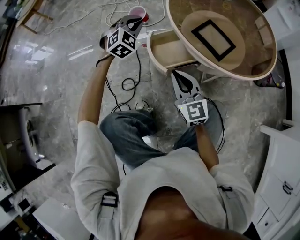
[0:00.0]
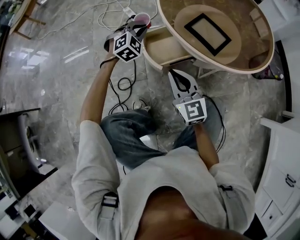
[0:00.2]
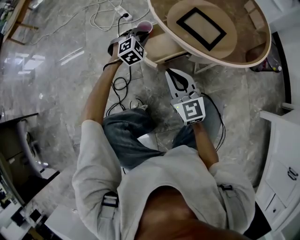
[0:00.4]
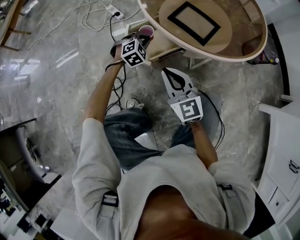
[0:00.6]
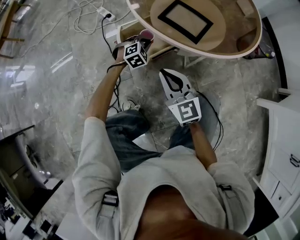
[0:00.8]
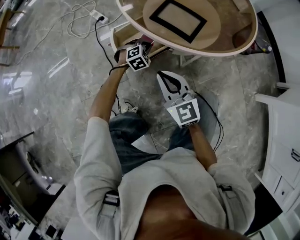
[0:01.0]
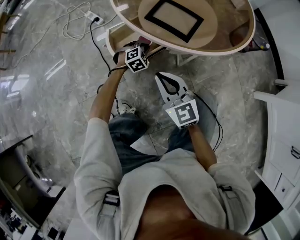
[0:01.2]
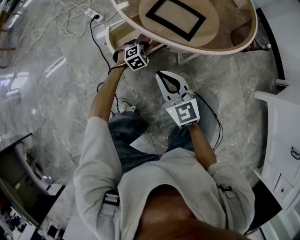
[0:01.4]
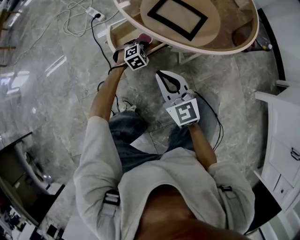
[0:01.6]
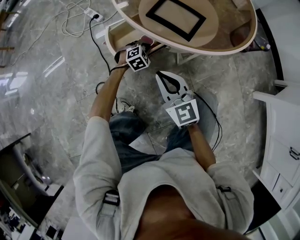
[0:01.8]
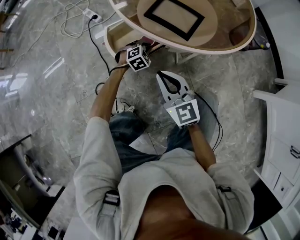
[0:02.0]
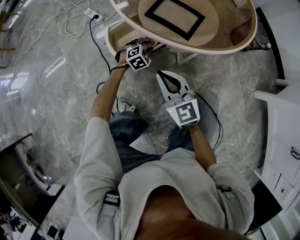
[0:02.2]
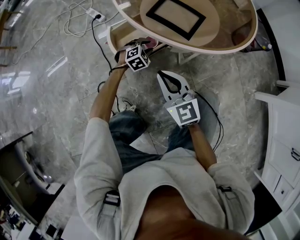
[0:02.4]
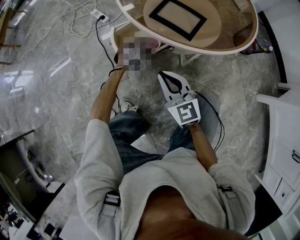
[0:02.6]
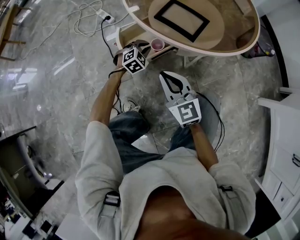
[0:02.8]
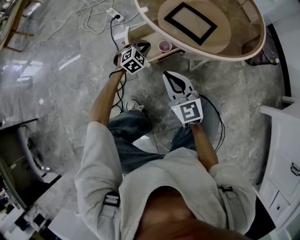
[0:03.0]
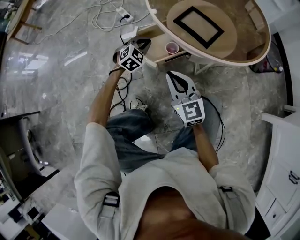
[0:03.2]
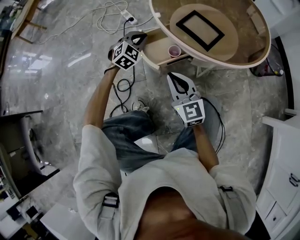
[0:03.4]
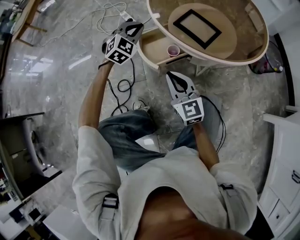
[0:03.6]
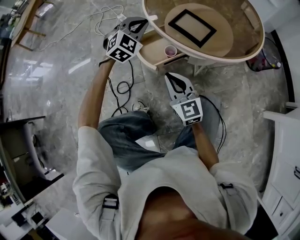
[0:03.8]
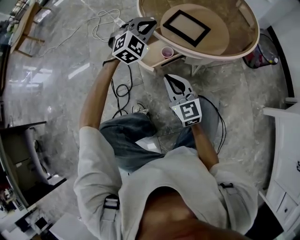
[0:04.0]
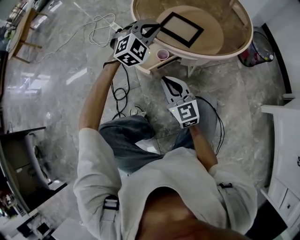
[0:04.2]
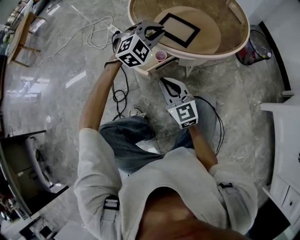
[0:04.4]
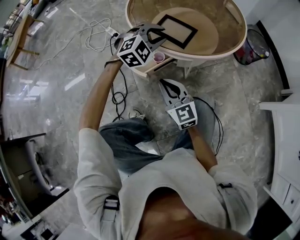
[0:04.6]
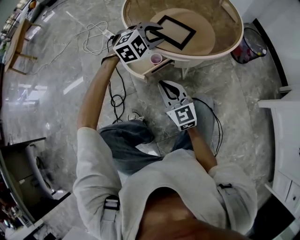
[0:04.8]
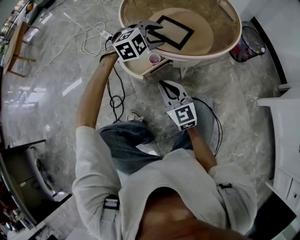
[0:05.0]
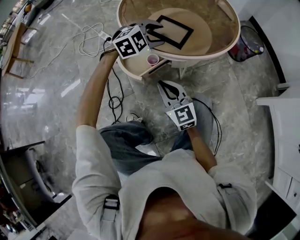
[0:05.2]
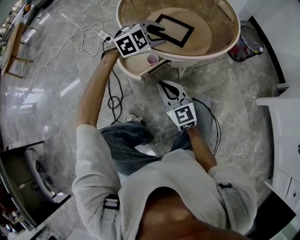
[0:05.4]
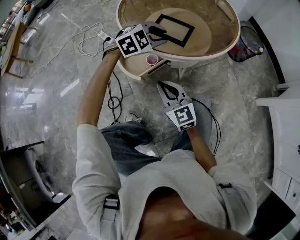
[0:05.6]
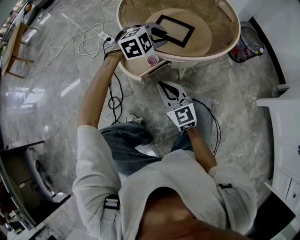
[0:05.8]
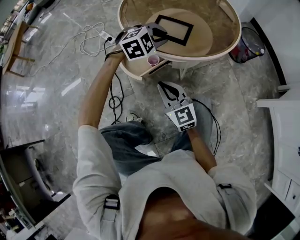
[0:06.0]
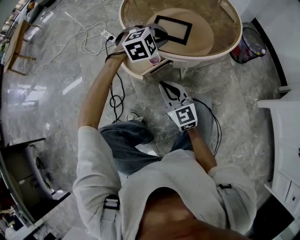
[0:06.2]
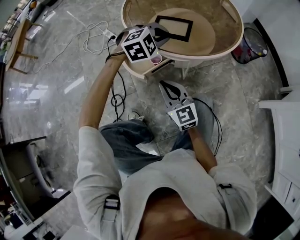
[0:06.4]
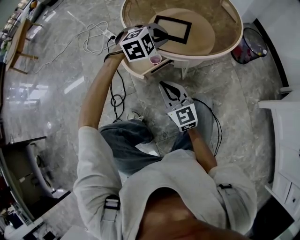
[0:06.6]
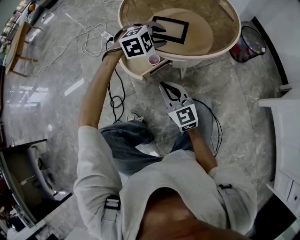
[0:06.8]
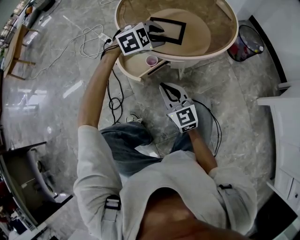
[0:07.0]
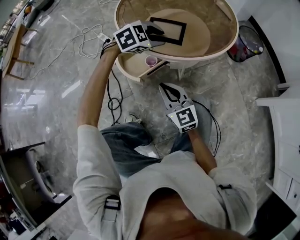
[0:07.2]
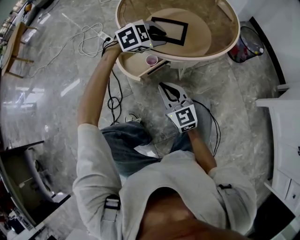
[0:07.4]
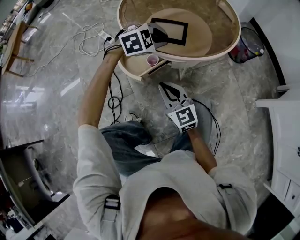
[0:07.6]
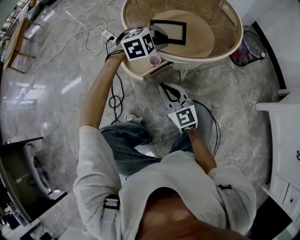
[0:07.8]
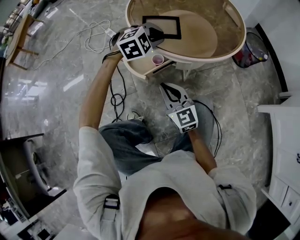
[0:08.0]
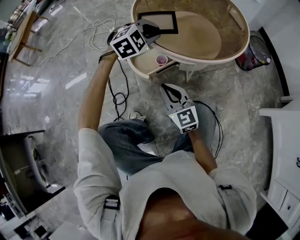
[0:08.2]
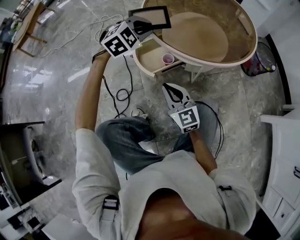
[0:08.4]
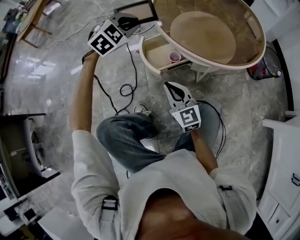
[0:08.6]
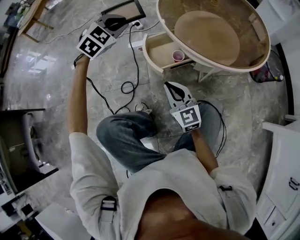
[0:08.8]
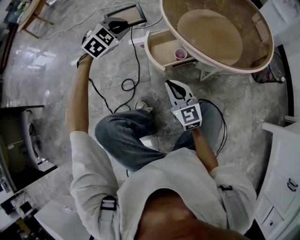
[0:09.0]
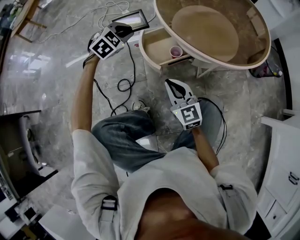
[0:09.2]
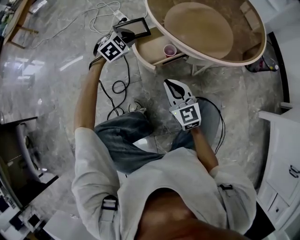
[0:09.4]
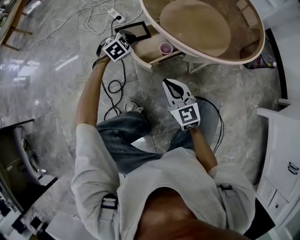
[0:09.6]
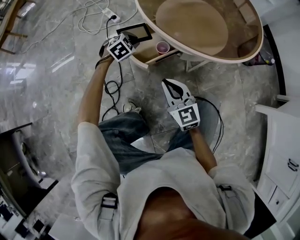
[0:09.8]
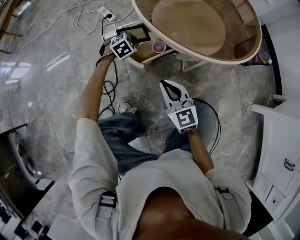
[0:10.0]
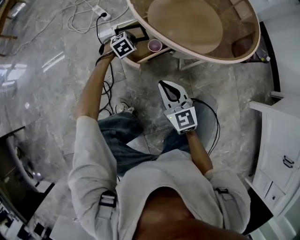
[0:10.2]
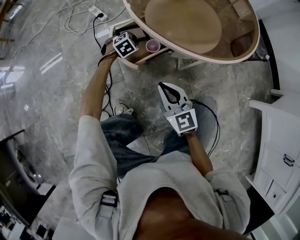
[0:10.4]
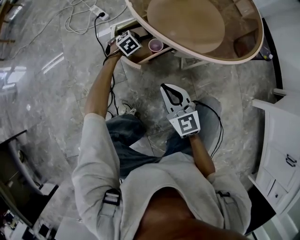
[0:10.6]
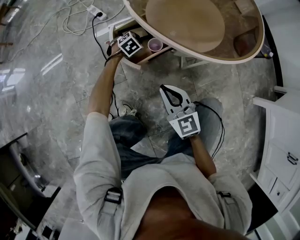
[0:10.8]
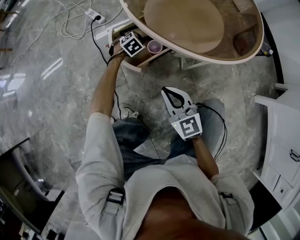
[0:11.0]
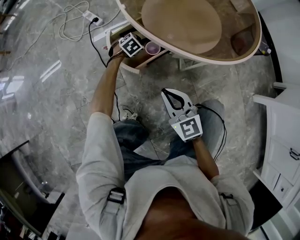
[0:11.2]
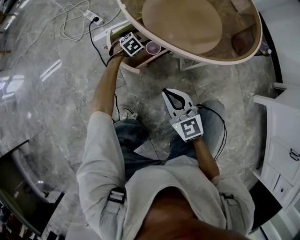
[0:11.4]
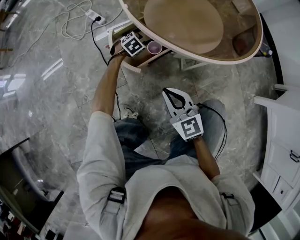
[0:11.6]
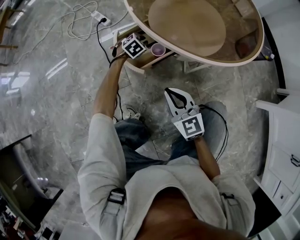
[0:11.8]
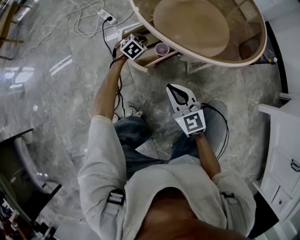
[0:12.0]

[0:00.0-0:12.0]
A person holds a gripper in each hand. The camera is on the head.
0:00.0 to 0:01.6: The right gripper moves to the right, roughly 5 cm, while the left gripper travels downward and to the right by about 35 cm, and swivels about 30 degrees.
0:01.6 to 0:03.0: The left gripper heads upward and to the left, covering some 10 cm, and opens, then closes again.
0:03.0 to 0:04.4: The left gripper goes roughly 25 cm upward and to the right, and rotates about 30 degrees.
0:04.4 to 0:06.0: The left gripper changes place by roughly 5 cm, and opens, then closes again.
0:06.0 to 0:07.6: The left gripper opens and closes again.
0:07.6 to 0:09.0: The right gripper moves roughly 10 cm; the left gripper changes place by some 30 cm, and swivels some 40 degrees.
0:09.0 to 0:10.4: The right gripper is displaced to the right by roughly 5 cm. The left gripper goes about 35 cm downward and to the right, and swivels about 20 degrees.

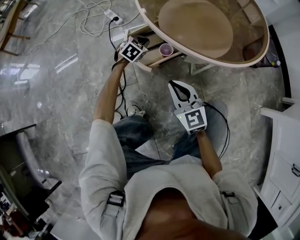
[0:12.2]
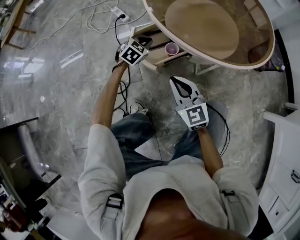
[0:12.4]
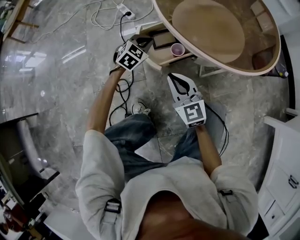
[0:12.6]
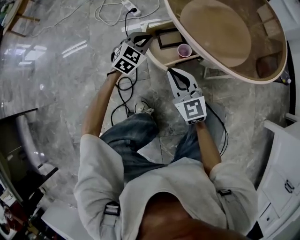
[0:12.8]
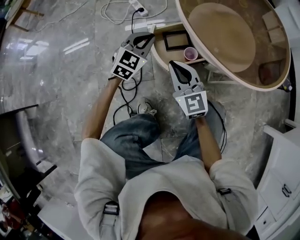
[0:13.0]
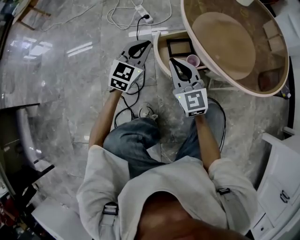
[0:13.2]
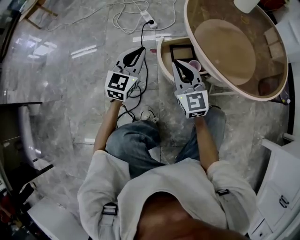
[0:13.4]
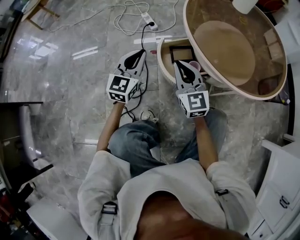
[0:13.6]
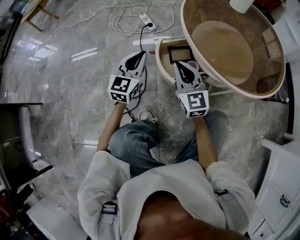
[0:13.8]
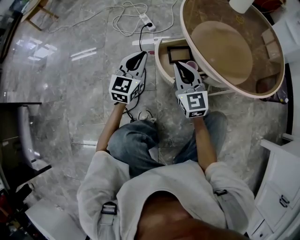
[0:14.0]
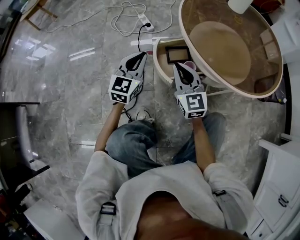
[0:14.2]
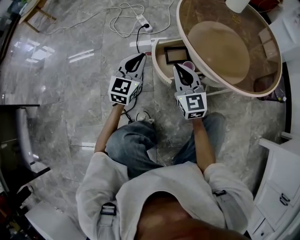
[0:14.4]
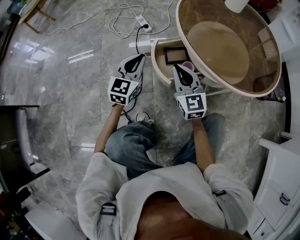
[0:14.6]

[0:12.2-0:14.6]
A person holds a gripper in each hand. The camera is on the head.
0:12.2 to 0:13.4: The left gripper is displaced upward, to the left and backward by about 30 cm, and tips its fingers upward by about 40 degrees; the right gripper shifts approximately 15 cm to the left, forward and upward.
0:13.4 to 0:14.6: The grippers make only small movements.

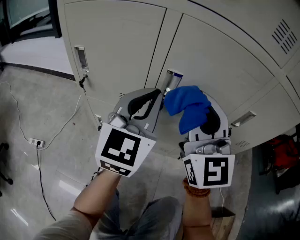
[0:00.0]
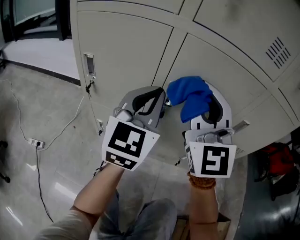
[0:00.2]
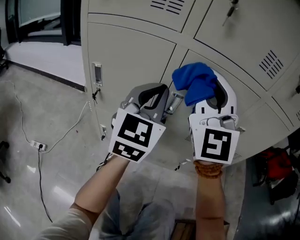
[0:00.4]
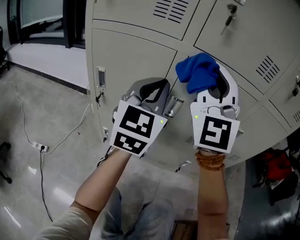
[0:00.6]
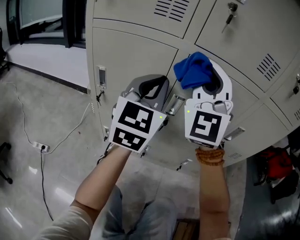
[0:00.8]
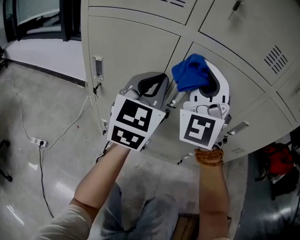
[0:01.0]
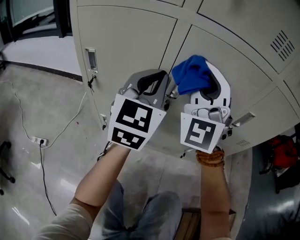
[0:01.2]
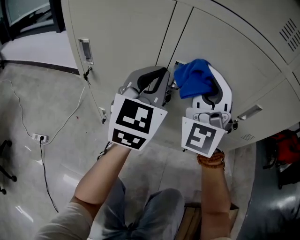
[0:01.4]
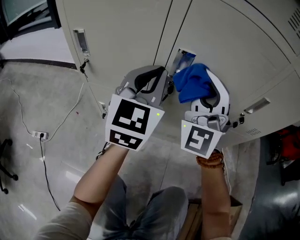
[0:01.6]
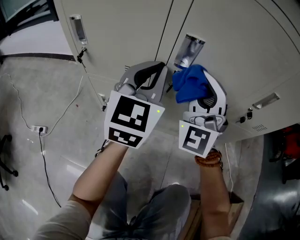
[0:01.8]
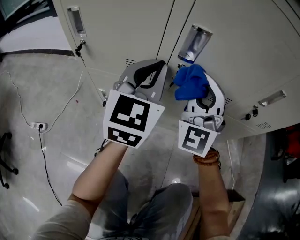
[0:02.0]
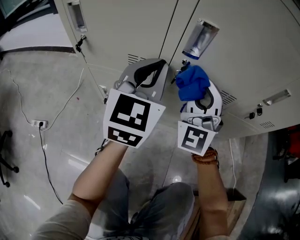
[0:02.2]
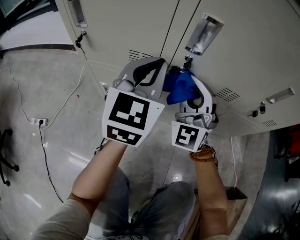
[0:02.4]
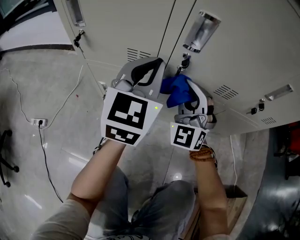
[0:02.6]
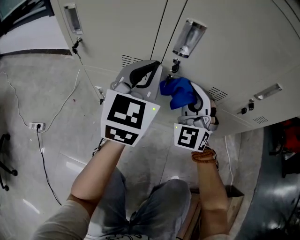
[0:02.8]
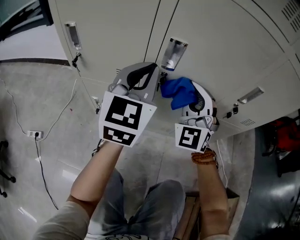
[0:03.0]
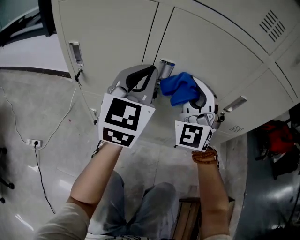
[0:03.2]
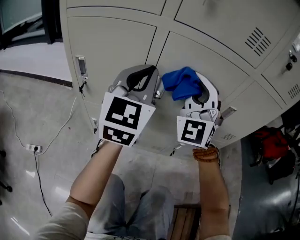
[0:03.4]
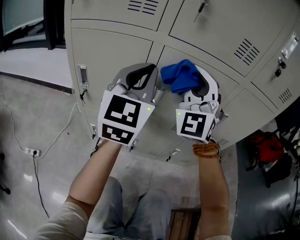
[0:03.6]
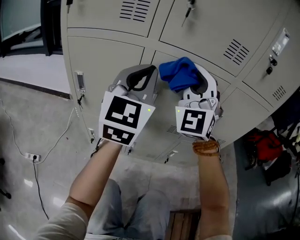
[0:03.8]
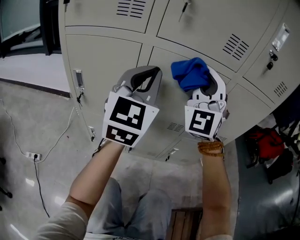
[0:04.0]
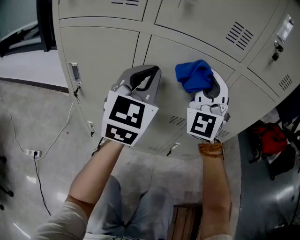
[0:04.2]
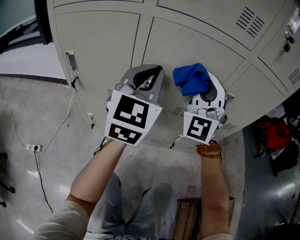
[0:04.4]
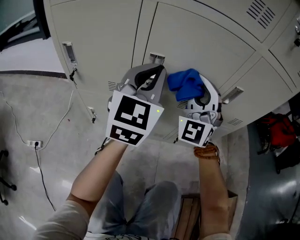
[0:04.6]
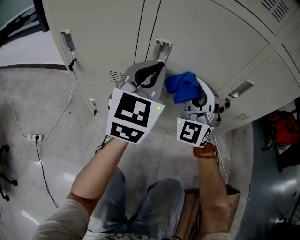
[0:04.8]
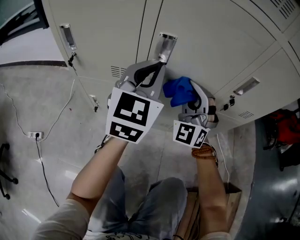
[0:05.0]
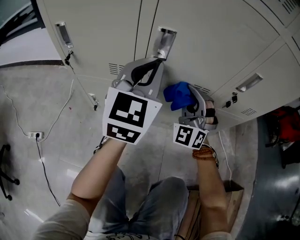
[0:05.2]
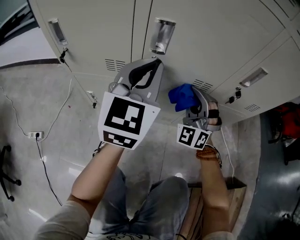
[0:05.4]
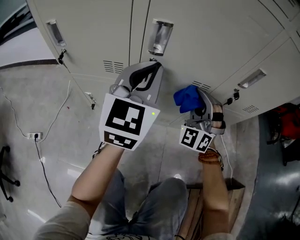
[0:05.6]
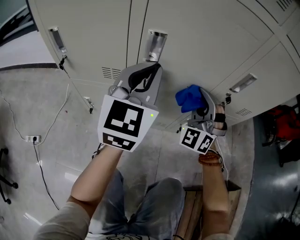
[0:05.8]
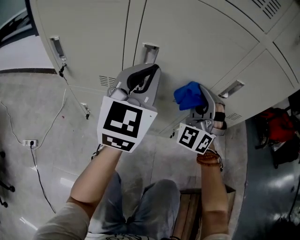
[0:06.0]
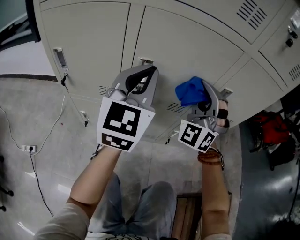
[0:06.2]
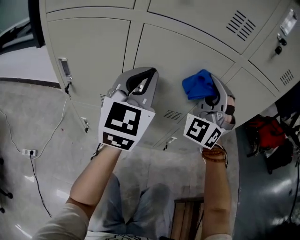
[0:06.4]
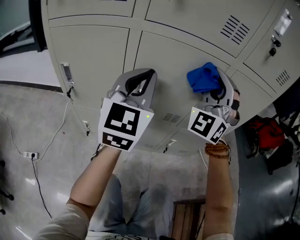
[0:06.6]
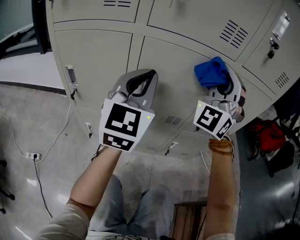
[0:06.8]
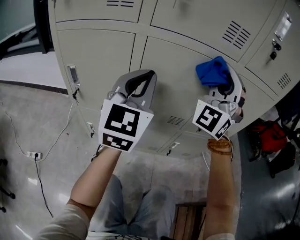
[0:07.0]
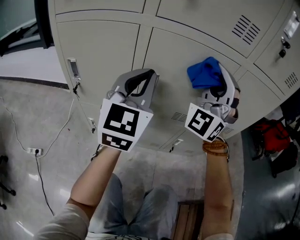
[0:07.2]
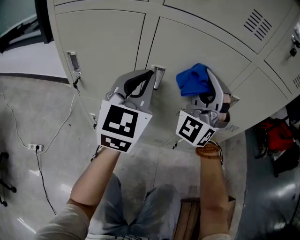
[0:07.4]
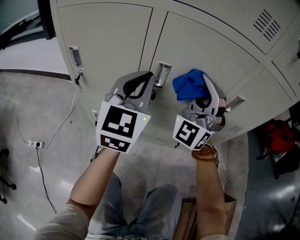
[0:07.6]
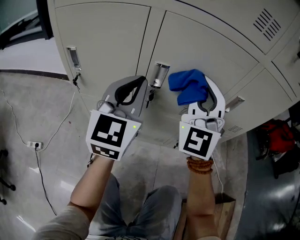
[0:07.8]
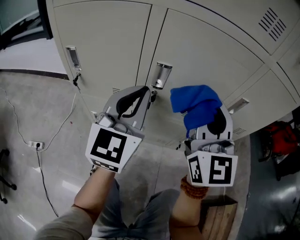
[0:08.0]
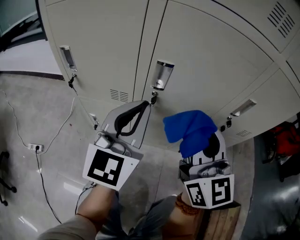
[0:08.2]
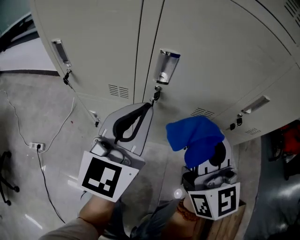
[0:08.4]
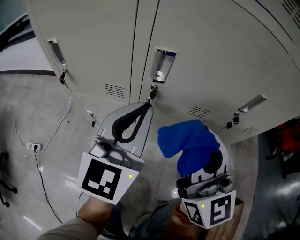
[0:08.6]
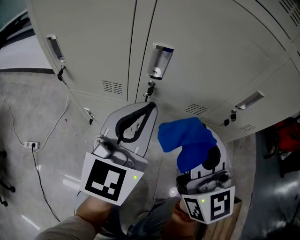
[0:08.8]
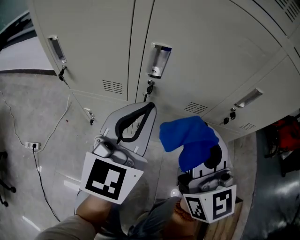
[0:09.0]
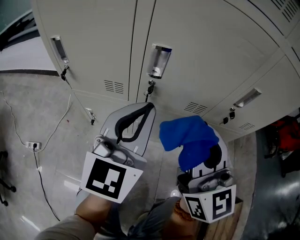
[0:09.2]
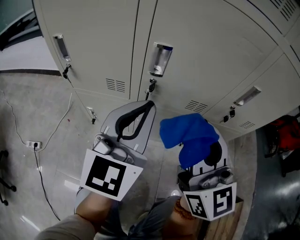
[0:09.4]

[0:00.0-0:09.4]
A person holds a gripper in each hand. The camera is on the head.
0:00.0 to 0:01.6: The left gripper goes upward and returns, some 10 cm each way. Meanwhile the right gripper travels upward and back again, about 15 cm each way, and swivels approximately 30 degrees.
0:01.6 to 0:03.2: The right gripper travels downward and back again, some 20 cm each way. The left gripper goes approximately 5 cm upward.
0:03.2 to 0:04.8: The right gripper reaches roughly 15 cm upward, then returns, while the left gripper reaches roughly 15 cm upward, then returns.
0:04.8 to 0:06.2: The right gripper heads to the right, covering about 5 cm, goes downward and returns, approximately 15 cm each way, and changes its angle by roughly 20 degrees. The left gripper shifts approximately 5 cm upward.
0:06.2 to 0:07.8: The grippers both shift to the left by roughly 5 cm. The left gripper reaches about 5 cm upward, then returns; the right gripper goes upward and returns, approximately 15 cm each way, and swivels approximately 30 degrees.
0:07.8 to 0:09.4: The left gripper heads downward and backward, covering about 10 cm, while the right gripper shifts some 10 cm backward and downward, and twists about 40 degrees clockwise, seen from behind.
